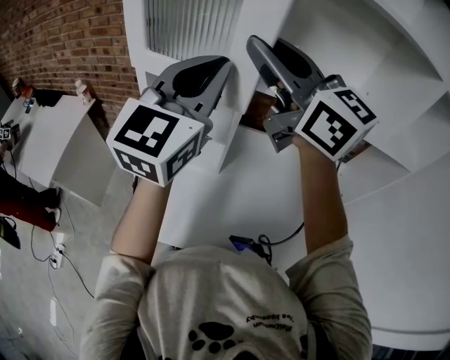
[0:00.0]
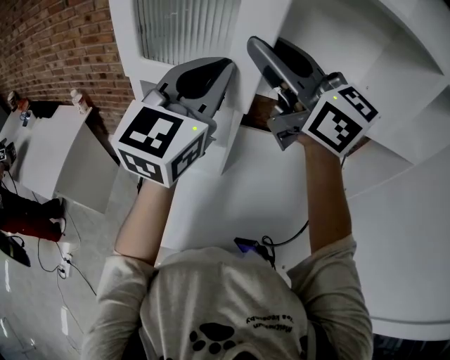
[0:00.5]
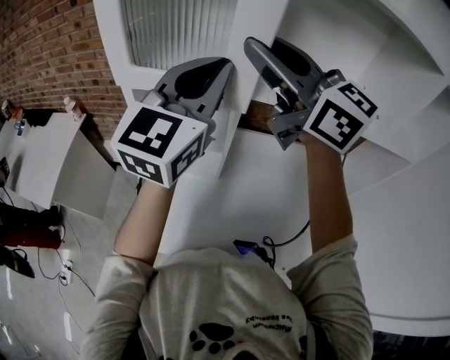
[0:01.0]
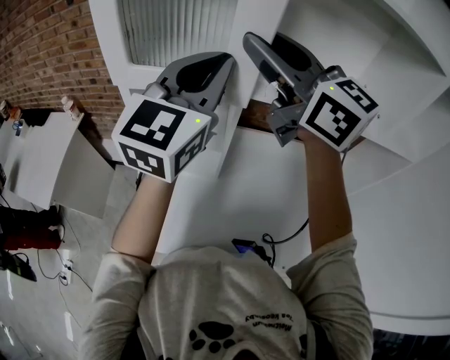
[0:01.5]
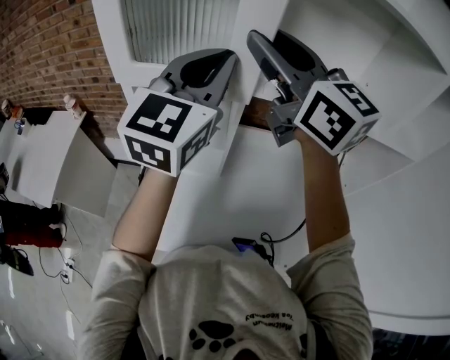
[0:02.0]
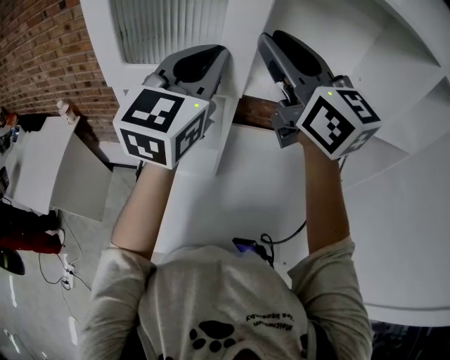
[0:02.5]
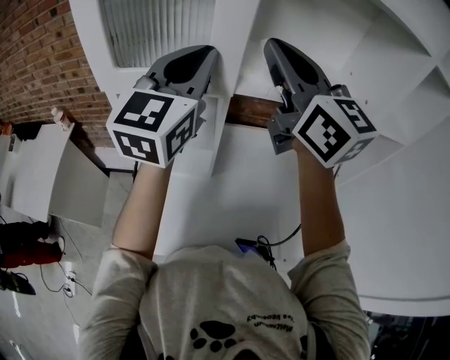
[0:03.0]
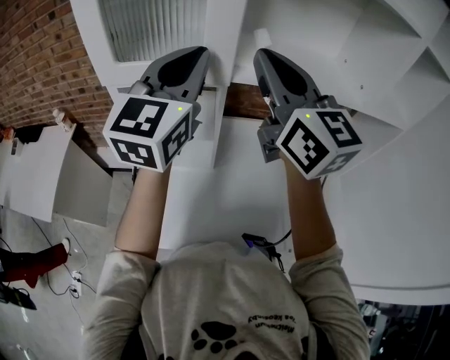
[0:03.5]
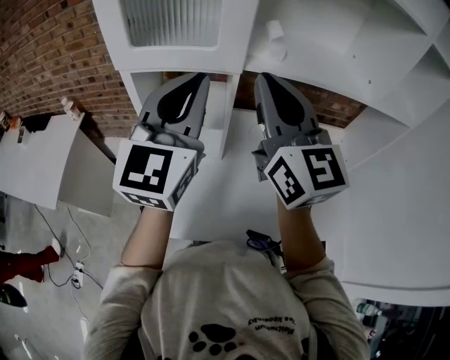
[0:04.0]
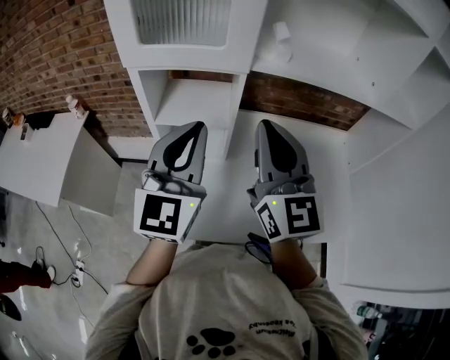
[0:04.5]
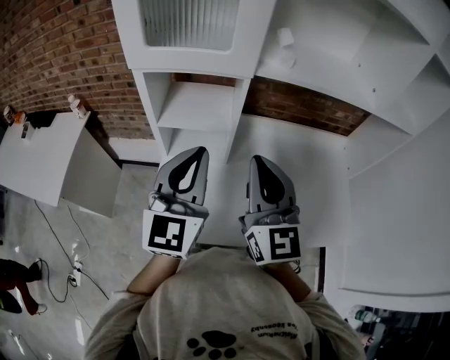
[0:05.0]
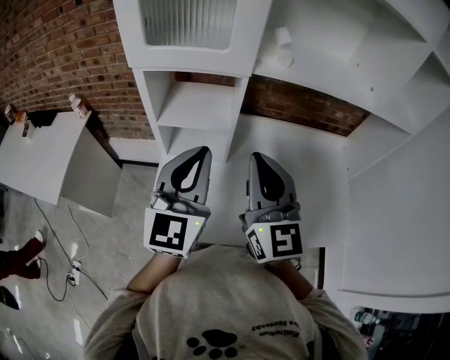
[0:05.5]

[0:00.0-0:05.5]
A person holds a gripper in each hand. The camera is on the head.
0:00.0 to 0:02.0: The right gripper ends up some 5 cm from where it was. Meanwhile the left gripper heads forward, covering approximately 5 cm.
0:02.0 to 0:03.5: The right gripper is displaced backward by roughly 5 cm, and closes its fingers.
0:03.5 to 0:05.5: The left gripper moves backward and downward, roughly 20 cm. Meanwhile the right gripper heads downward and backward, covering approximately 20 cm.

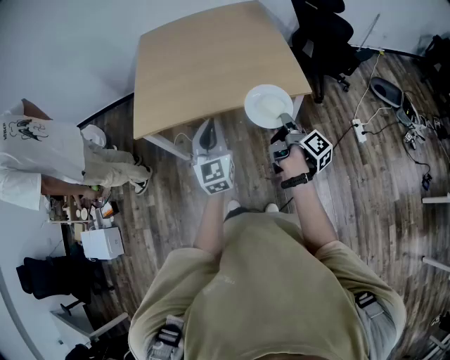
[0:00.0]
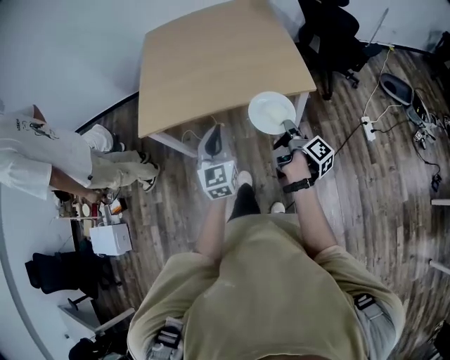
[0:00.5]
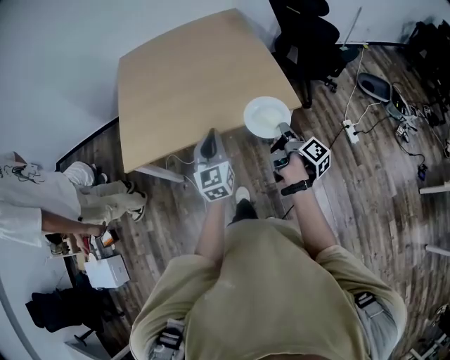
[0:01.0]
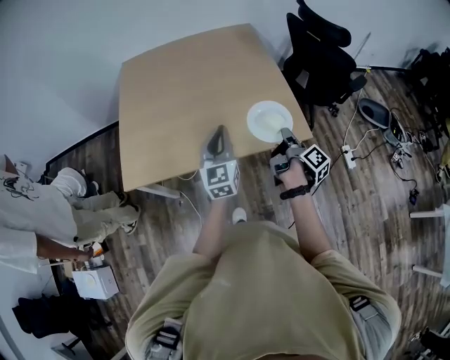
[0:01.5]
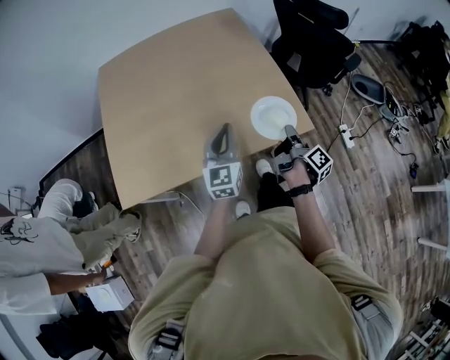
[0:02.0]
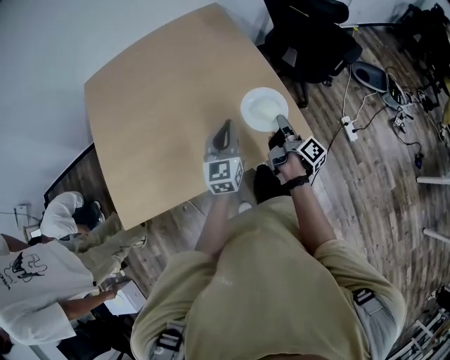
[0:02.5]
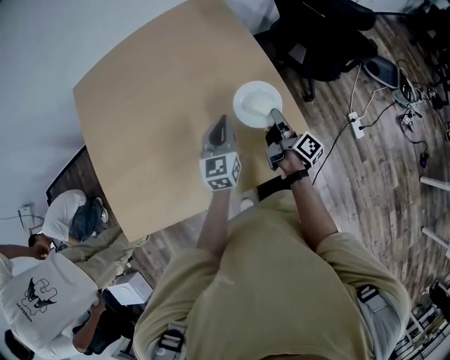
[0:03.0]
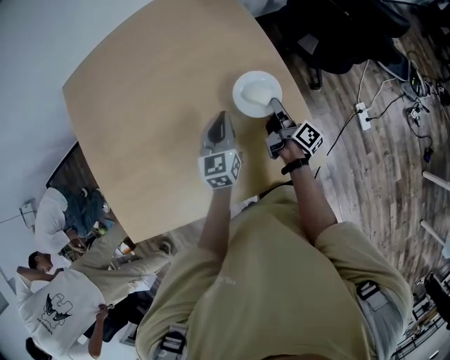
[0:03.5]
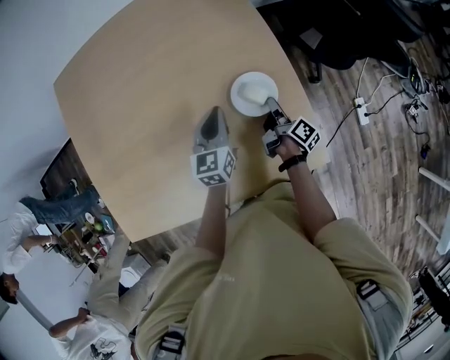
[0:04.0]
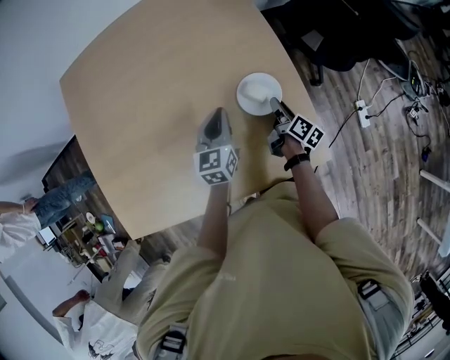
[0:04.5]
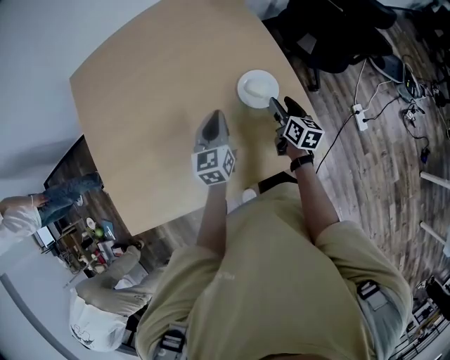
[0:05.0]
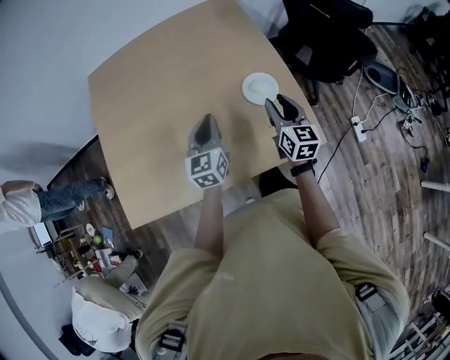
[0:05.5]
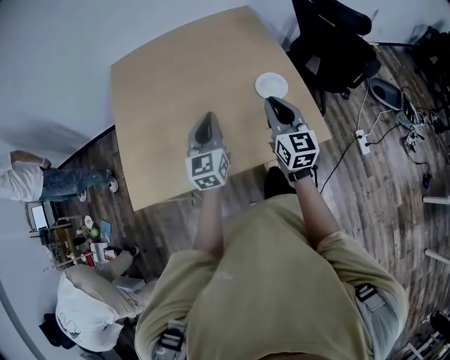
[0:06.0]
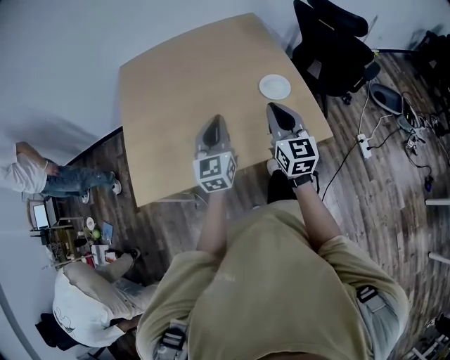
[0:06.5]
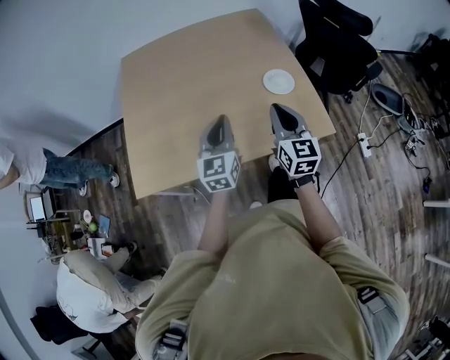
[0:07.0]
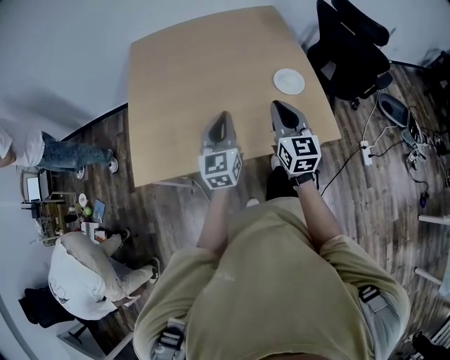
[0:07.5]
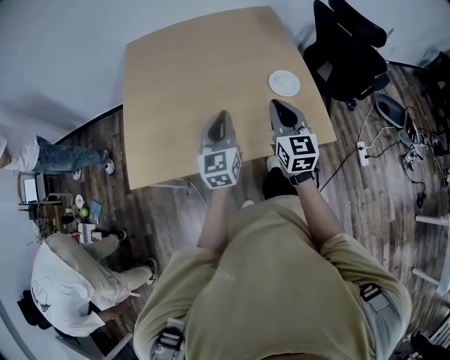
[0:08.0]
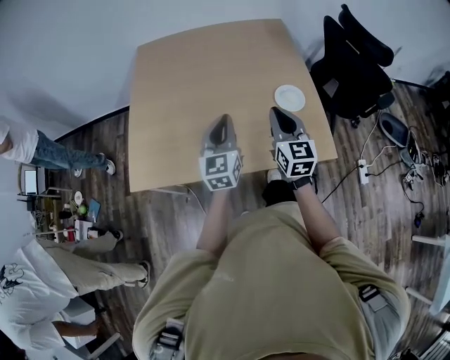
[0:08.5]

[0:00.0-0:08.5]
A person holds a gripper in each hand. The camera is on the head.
0:00.0 to 0:02.0: Both grippers move forward, about 30 cm. The left gripper changes its angle by about 20 degrees.
0:02.0 to 0:04.0: Both grippers travel together forward and downward, approximately 40 cm. The left gripper changes its angle by roughly 20 degrees.
0:04.0 to 0:06.5: The right gripper moves upward, backward and to the left, some 50 cm, rolls counterclockwise, seen from behind, by roughly 80 degrees, and opens, then closes again. The left gripper shifts approximately 40 cm backward, upward and to the left, and rotates about 20 degrees.
0:06.5 to 0:08.5: The grippers make only small movements.

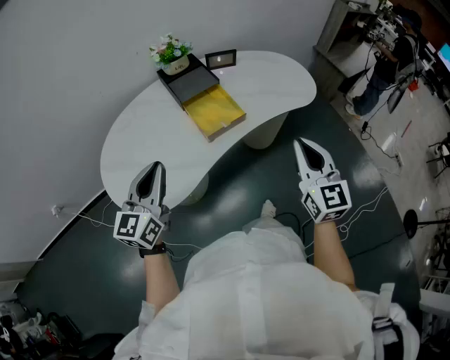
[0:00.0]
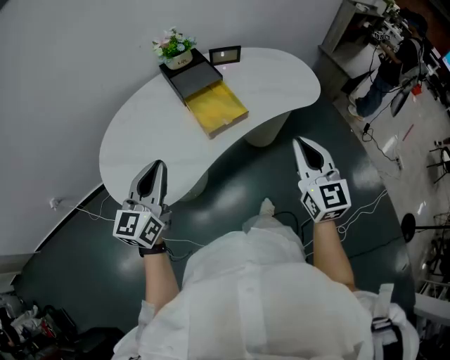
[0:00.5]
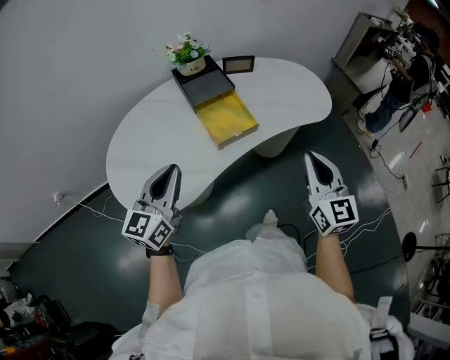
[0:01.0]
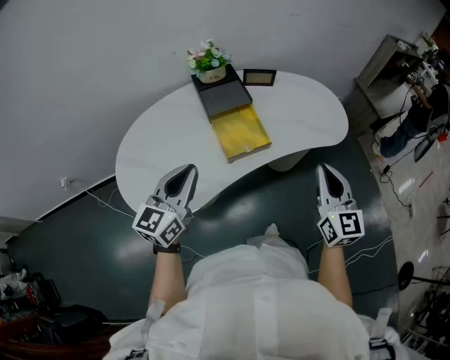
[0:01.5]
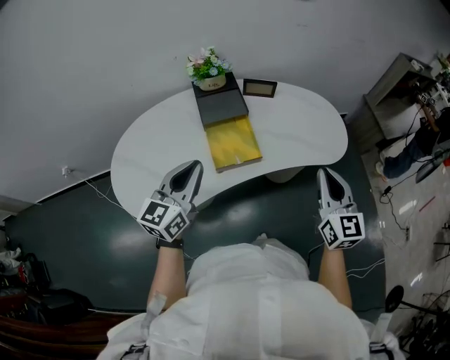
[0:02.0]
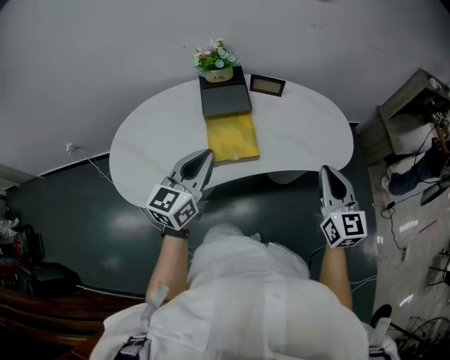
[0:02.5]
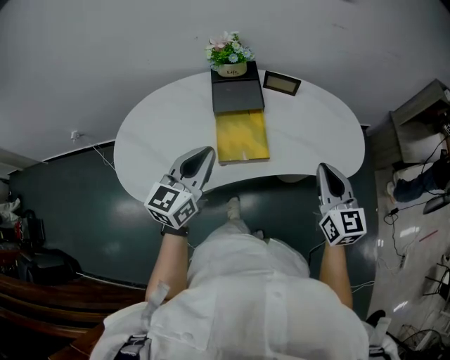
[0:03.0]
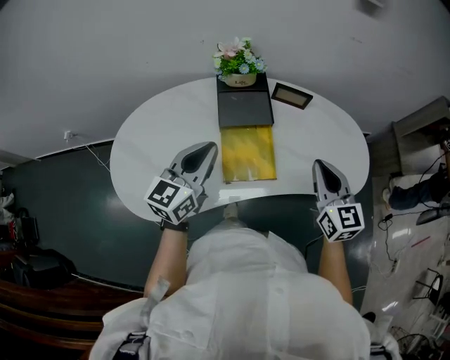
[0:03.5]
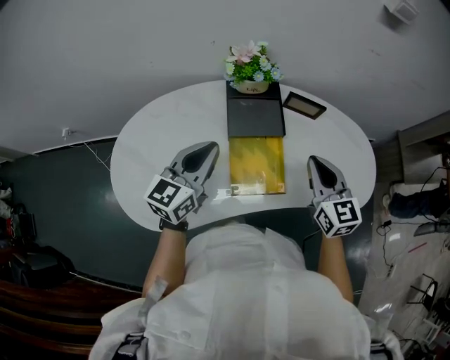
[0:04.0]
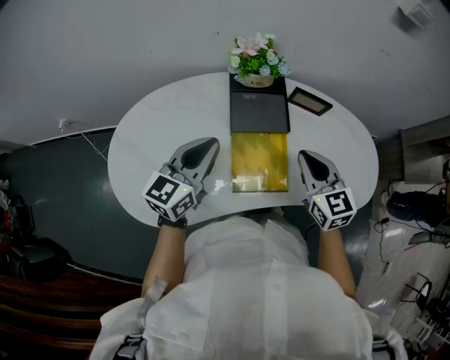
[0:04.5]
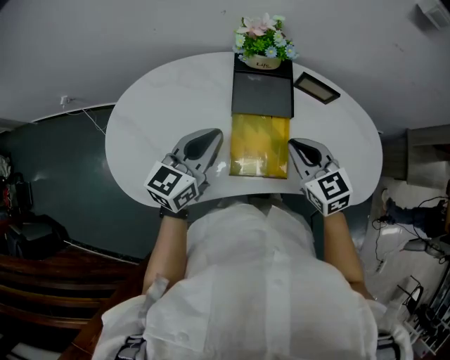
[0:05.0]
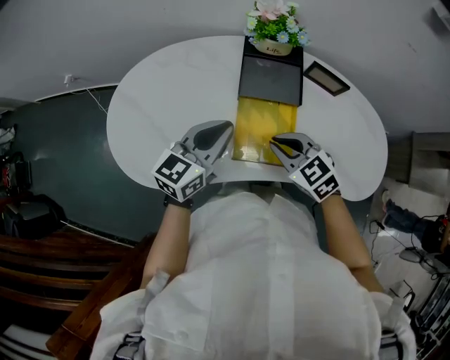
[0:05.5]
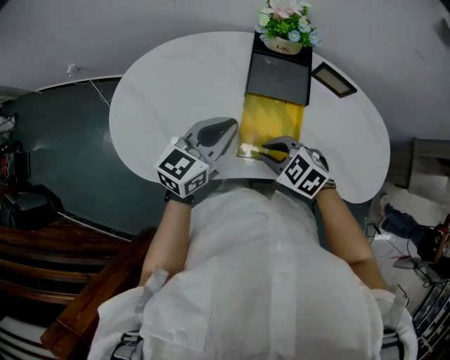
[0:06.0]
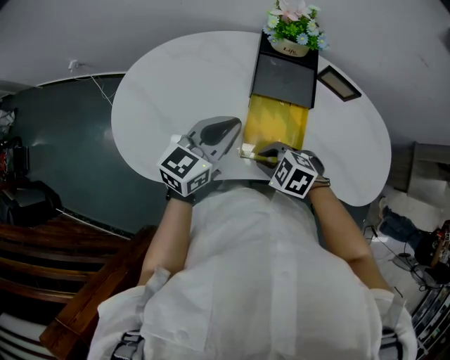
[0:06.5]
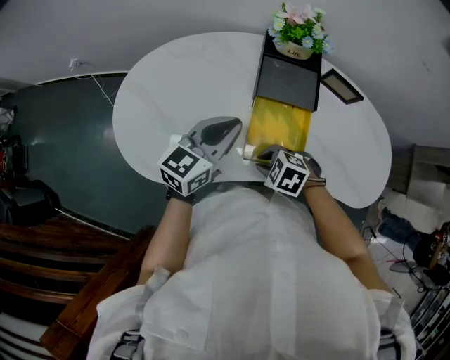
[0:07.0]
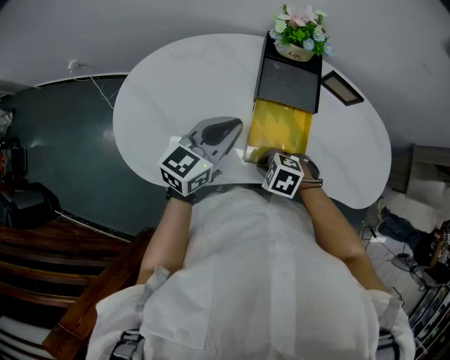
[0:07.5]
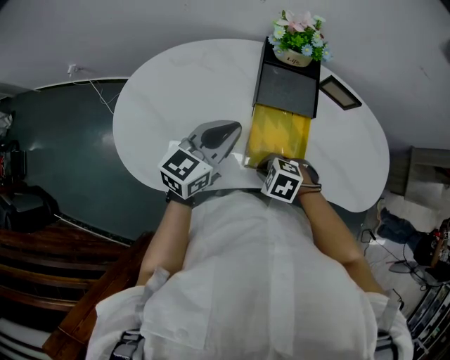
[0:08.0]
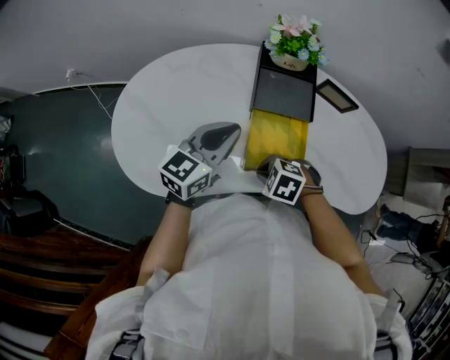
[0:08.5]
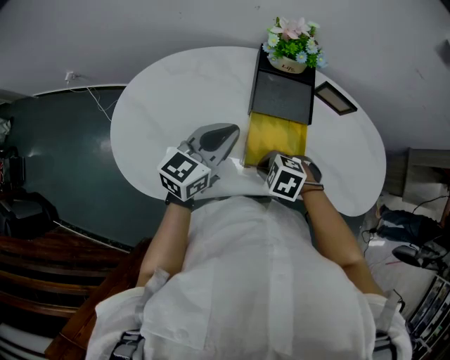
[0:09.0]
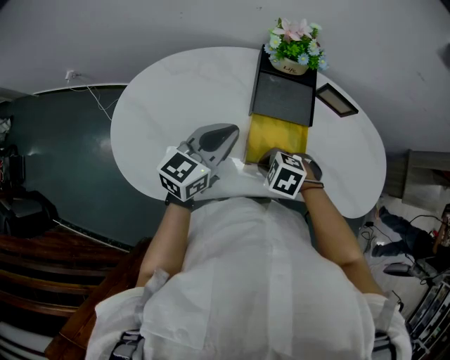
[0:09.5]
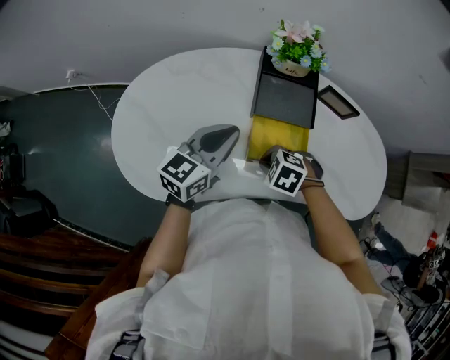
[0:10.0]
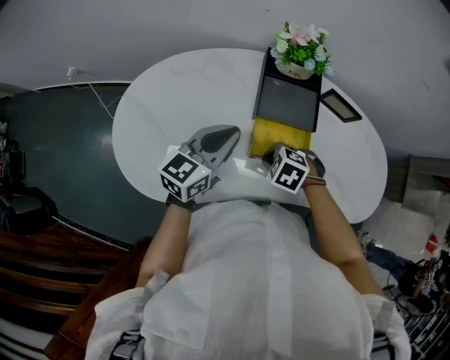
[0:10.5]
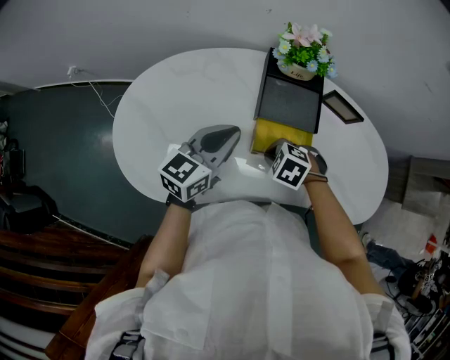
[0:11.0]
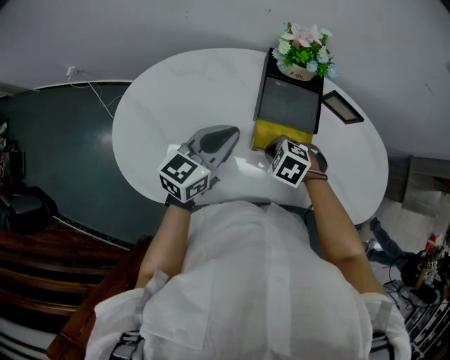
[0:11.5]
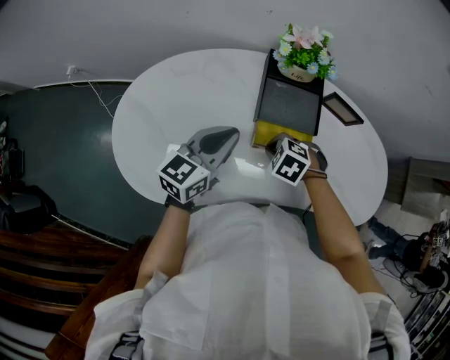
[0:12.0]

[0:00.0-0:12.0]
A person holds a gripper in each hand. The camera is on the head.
0:00.0 to 0:02.0: Both grippers move forward and to the right, about 15 cm.
0:02.0 to 0:04.0: The right gripper is displaced forward and to the left by some 25 cm, and swivels some 20 degrees; the left gripper is displaced forward by some 15 cm.
0:04.0 to 0:06.0: The right gripper shifts by roughly 20 cm, and angles its fingers downward, by approximately 40 degrees, while the left gripper shifts about 5 cm downward.
0:06.0 to 0:08.0: The right gripper heads downward, covering roughly 5 cm, and turns by about 20 degrees.
0:08.0 to 0:10.0: The right gripper shifts by roughly 5 cm.
0:10.0 to 0:12.0: The right gripper shifts by some 5 cm.

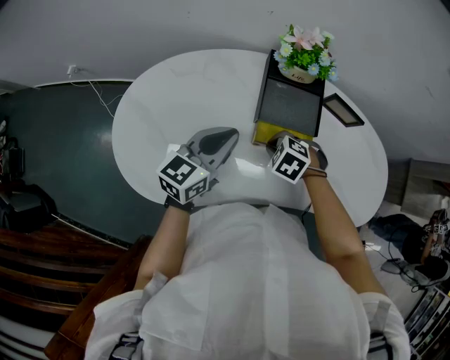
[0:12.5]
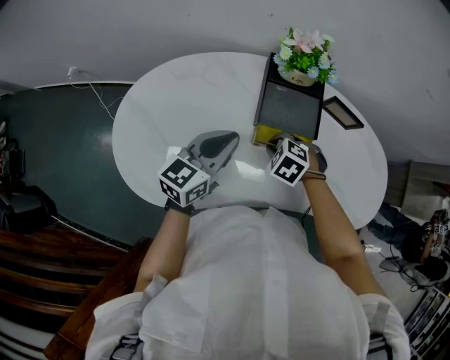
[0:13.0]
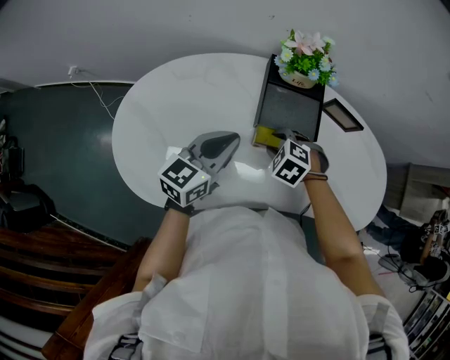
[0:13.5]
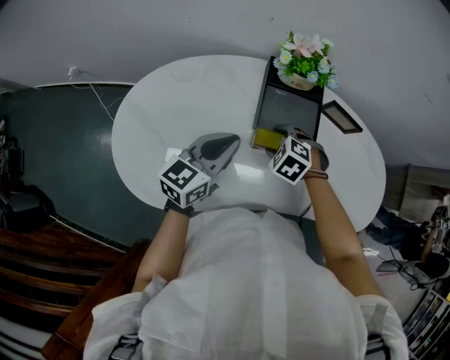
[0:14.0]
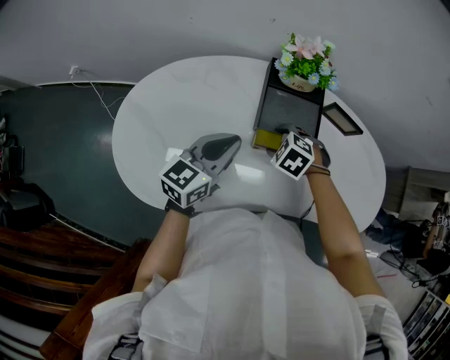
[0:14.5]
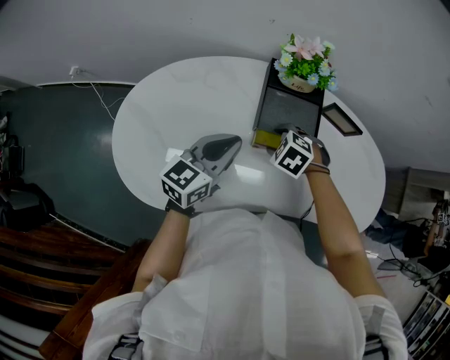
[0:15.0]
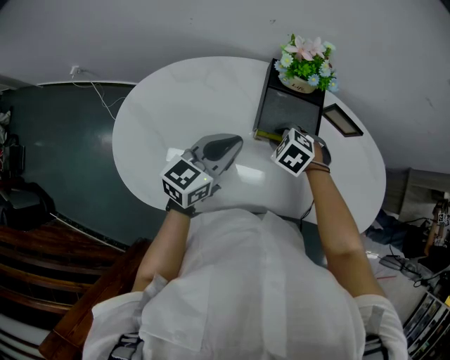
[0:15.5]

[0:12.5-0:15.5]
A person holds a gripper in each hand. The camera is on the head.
0:12.5 to 0:14.0: The right gripper opens.
0:14.0 to 0:15.5: The right gripper closes up.
